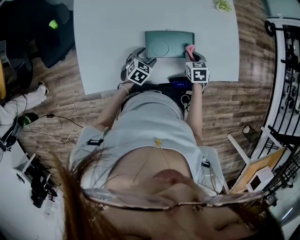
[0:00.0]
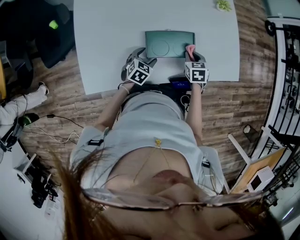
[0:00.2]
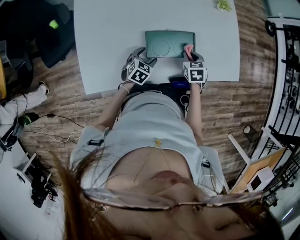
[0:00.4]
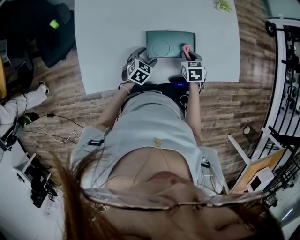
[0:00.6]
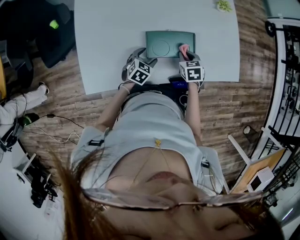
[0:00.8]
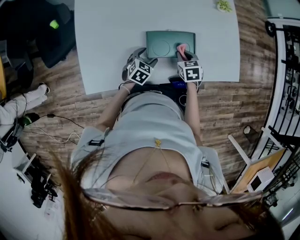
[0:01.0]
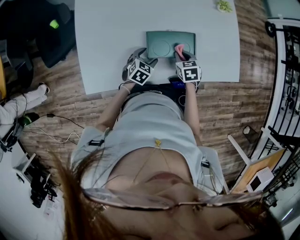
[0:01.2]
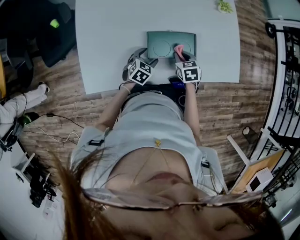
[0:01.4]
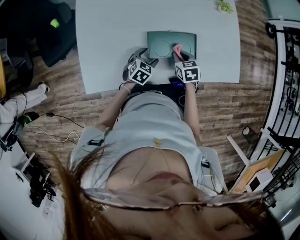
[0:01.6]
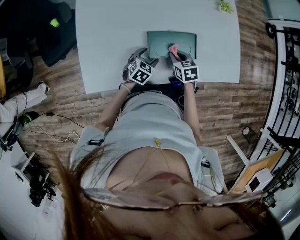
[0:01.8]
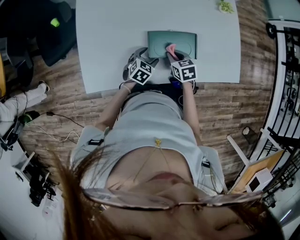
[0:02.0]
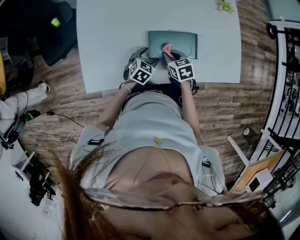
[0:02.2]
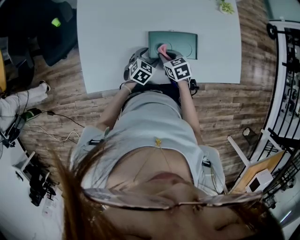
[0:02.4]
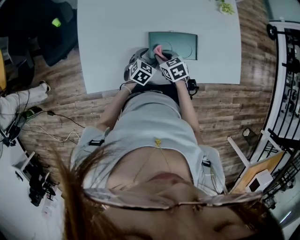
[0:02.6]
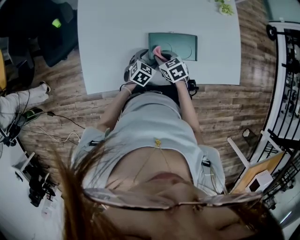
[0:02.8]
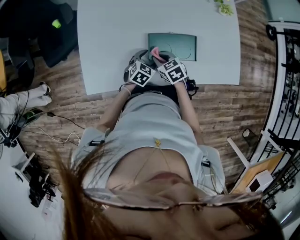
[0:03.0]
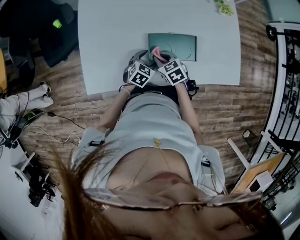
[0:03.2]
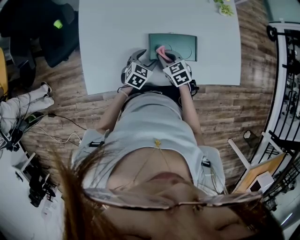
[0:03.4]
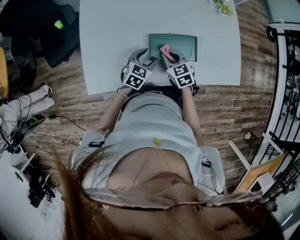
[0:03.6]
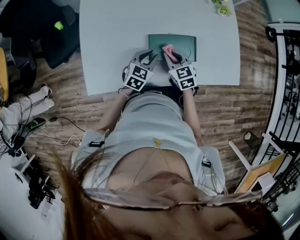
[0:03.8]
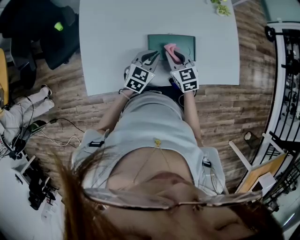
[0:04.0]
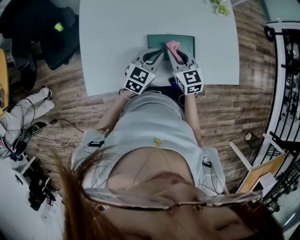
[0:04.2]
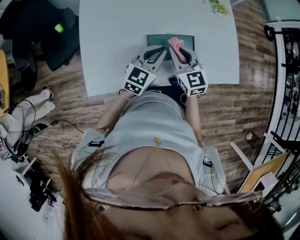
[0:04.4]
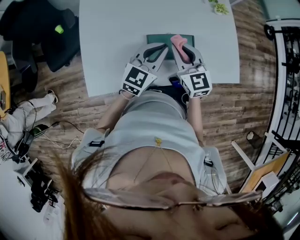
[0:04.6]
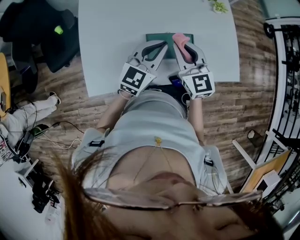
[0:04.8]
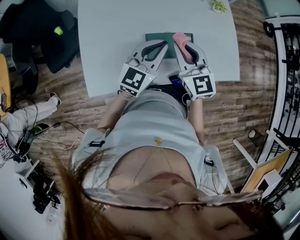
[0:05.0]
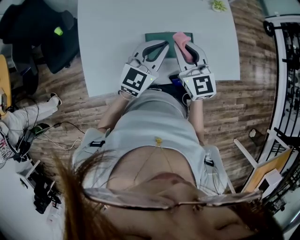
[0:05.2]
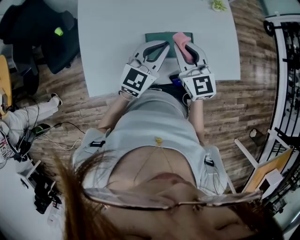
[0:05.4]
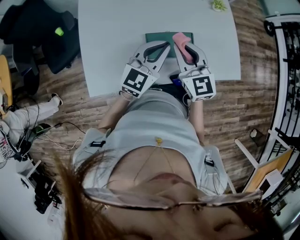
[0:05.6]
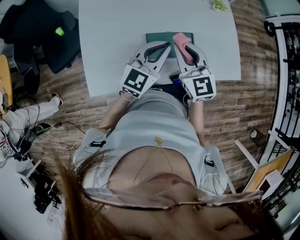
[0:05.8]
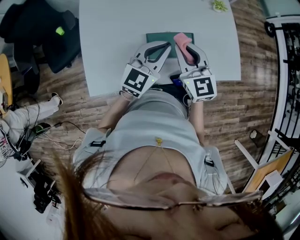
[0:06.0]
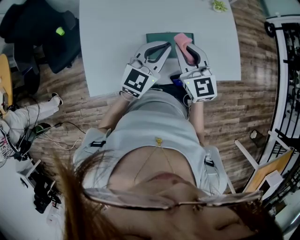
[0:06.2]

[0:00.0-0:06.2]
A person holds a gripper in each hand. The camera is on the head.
0:00.0 to 0:01.6: The right gripper is displaced to the left by roughly 5 cm.
0:01.6 to 0:03.2: The right gripper moves to the left, some 10 cm, and changes its angle by roughly 20 degrees.
0:03.2 to 0:04.6: Both grippers move upward, approximately 20 cm. The right gripper tips its fingers upward by approximately 30 degrees; the left gripper tilts its fingers about 30 degrees upward, and closes.
0:04.6 to 0:06.2: The grippers move only a little.

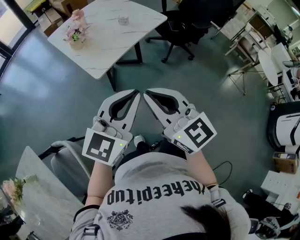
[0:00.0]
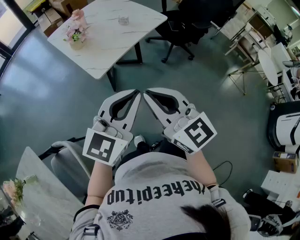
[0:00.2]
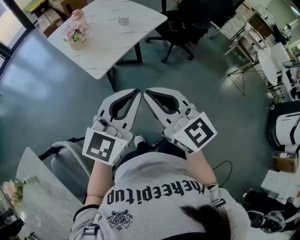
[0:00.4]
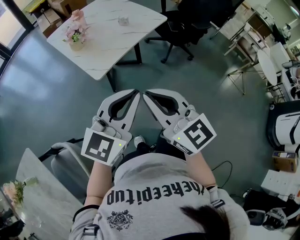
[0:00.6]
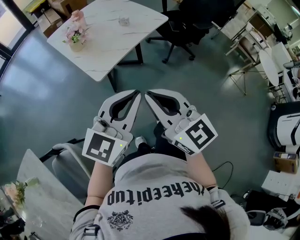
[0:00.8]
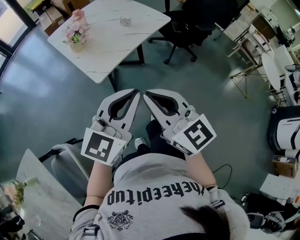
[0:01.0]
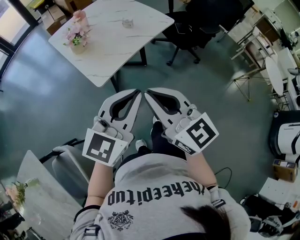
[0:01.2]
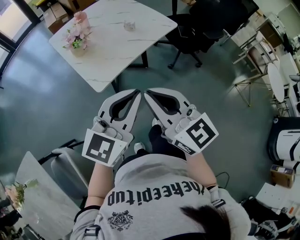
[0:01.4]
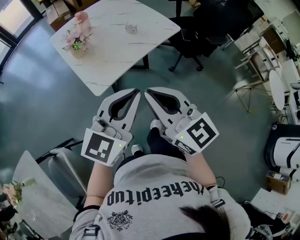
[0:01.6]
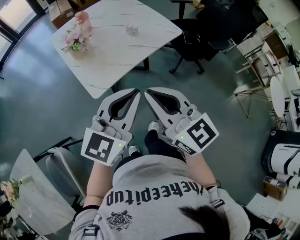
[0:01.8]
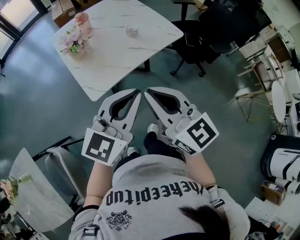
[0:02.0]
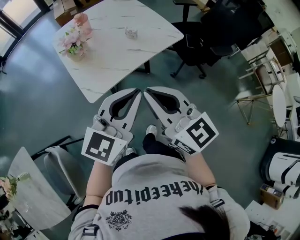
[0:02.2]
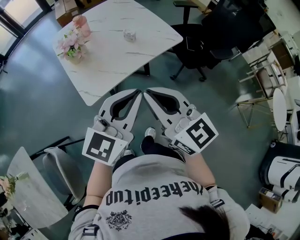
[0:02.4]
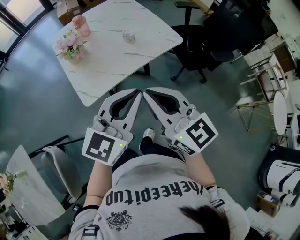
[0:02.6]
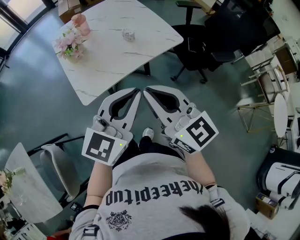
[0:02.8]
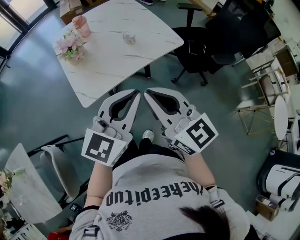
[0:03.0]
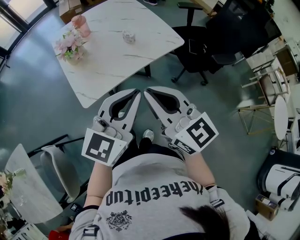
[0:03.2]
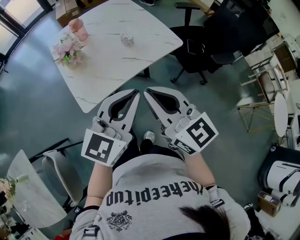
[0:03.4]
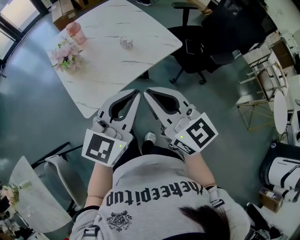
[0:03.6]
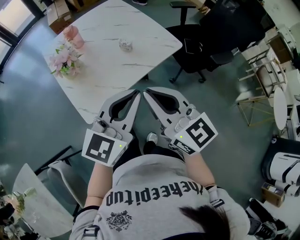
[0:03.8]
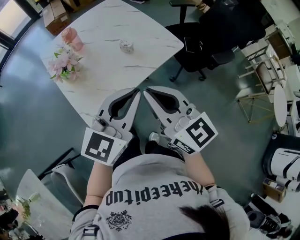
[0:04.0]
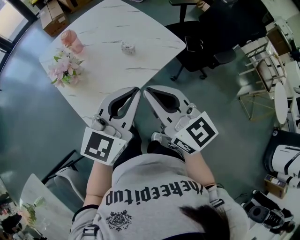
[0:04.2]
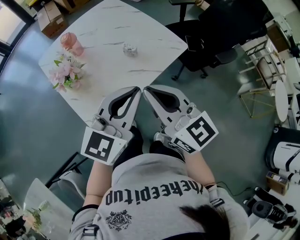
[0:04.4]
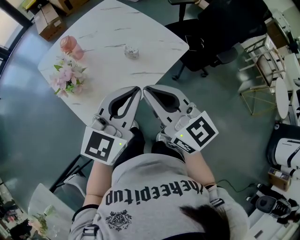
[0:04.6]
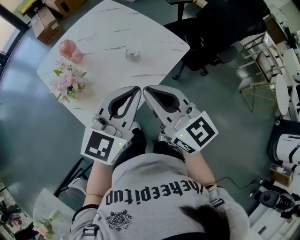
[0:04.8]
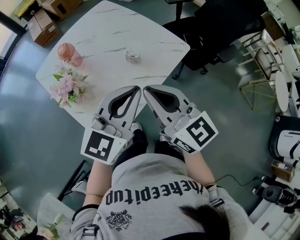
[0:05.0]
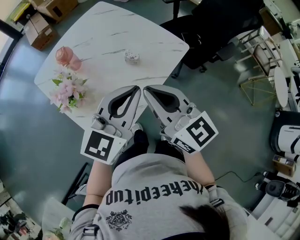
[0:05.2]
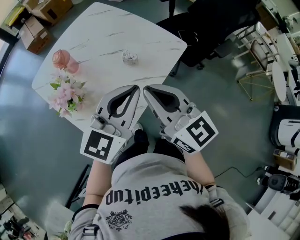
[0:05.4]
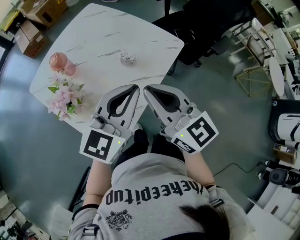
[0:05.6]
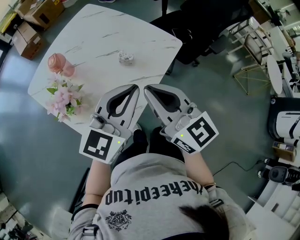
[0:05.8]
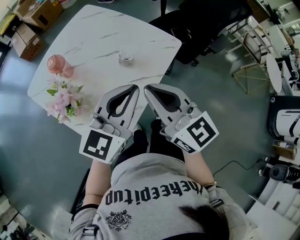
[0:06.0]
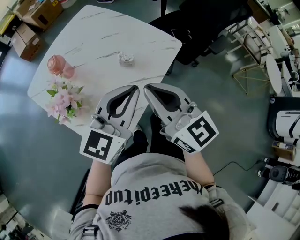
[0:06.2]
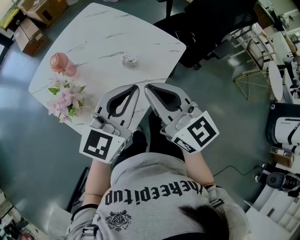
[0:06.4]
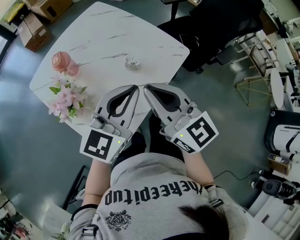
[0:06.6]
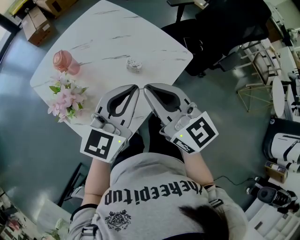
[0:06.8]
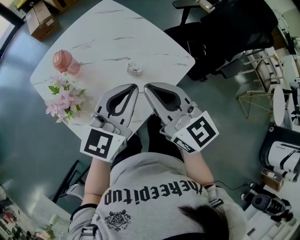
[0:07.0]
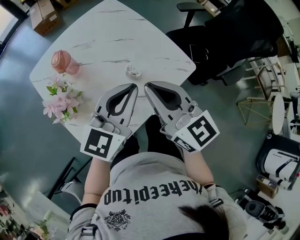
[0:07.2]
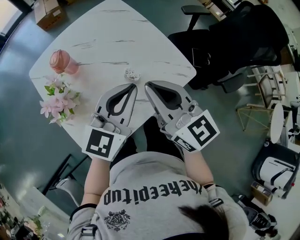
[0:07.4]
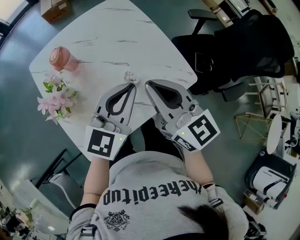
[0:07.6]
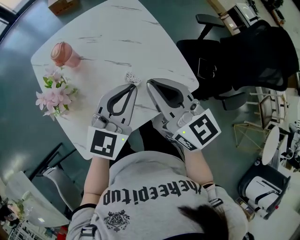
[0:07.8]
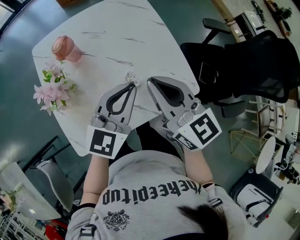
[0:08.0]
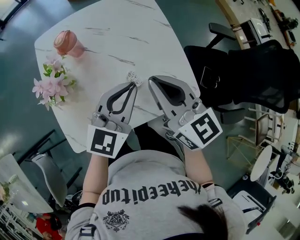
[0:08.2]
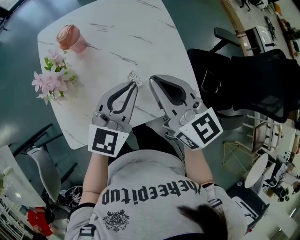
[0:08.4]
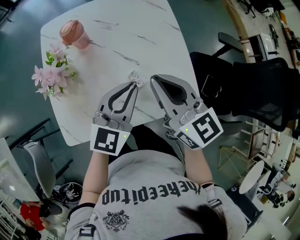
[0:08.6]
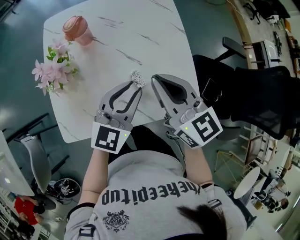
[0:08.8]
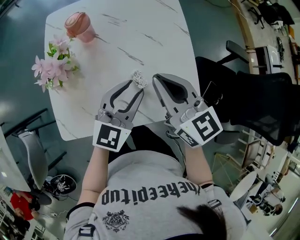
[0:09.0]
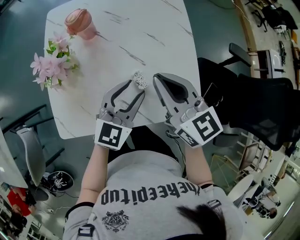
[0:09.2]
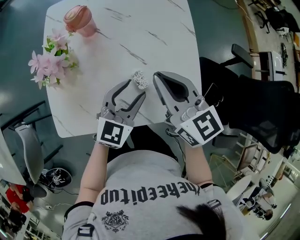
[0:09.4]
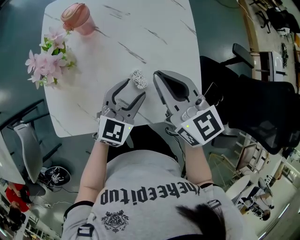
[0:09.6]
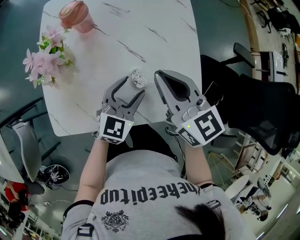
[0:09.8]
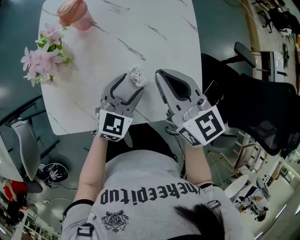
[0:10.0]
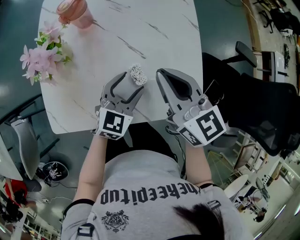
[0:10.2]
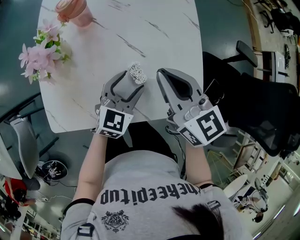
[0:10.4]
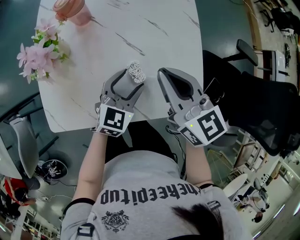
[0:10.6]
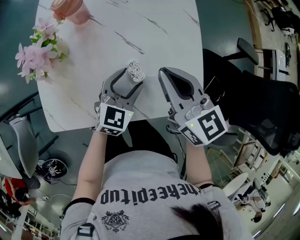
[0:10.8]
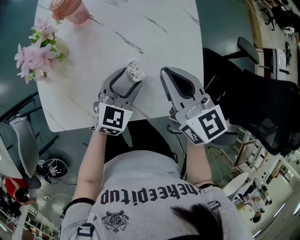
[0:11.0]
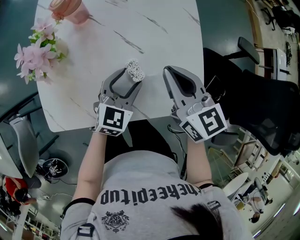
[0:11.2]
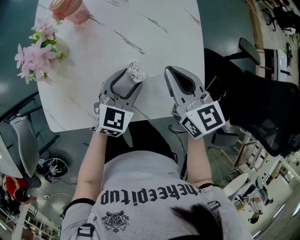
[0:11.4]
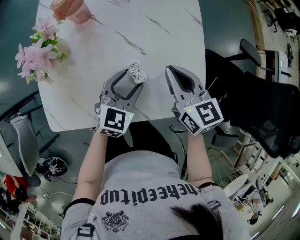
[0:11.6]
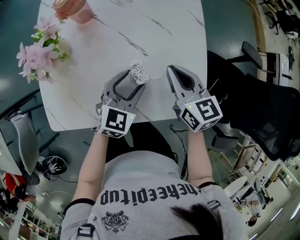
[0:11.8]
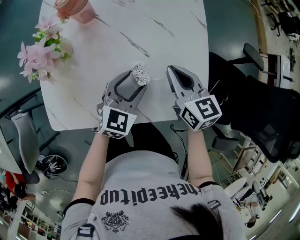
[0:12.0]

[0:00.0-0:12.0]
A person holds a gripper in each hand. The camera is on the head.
0:00.0 to 0:01.6: Both grippers travel together forward, about 15 cm.
0:01.6 to 0:03.0: The two grippers go about 10 cm to the right and forward.
0:03.0 to 0:04.4: Both grippers travel together forward and to the left, approximately 15 cm.
0:04.4 to 0:06.0: The two grippers go some 5 cm forward.
0:06.0 to 0:07.6: Both grippers move forward, roughly 15 cm. The left gripper rotates some 30 degrees. Meanwhile the right gripper rotates roughly 20 degrees.
0:07.6 to 0:09.0: The right gripper moves forward and downward, approximately 10 cm, and swivels roughly 20 degrees; the left gripper shifts about 10 cm downward, rotates approximately 20 degrees, and opens up.
0:09.0 to 0:10.4: The left gripper travels downward by some 10 cm, and opens.
0:10.4 to 0:12.0: The right gripper goes about 10 cm downward.

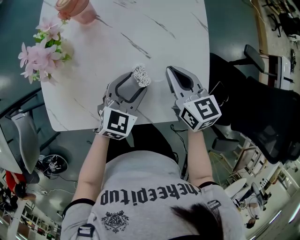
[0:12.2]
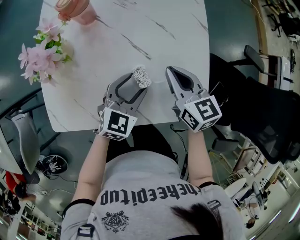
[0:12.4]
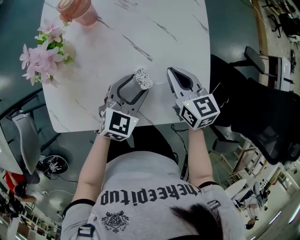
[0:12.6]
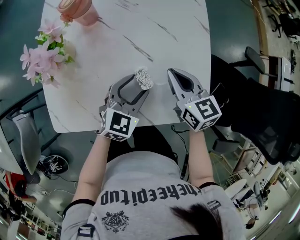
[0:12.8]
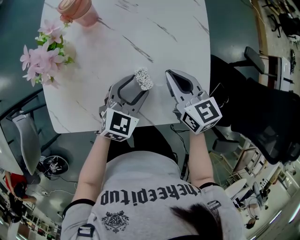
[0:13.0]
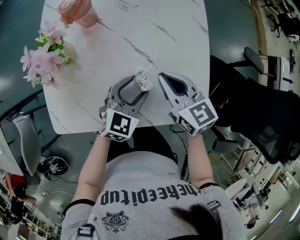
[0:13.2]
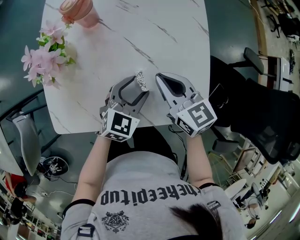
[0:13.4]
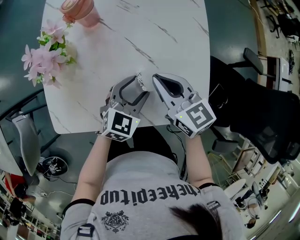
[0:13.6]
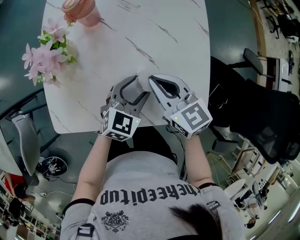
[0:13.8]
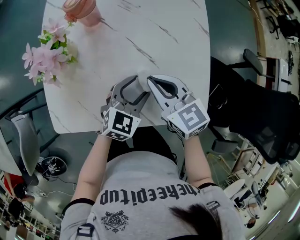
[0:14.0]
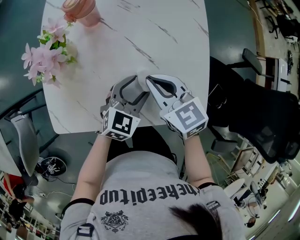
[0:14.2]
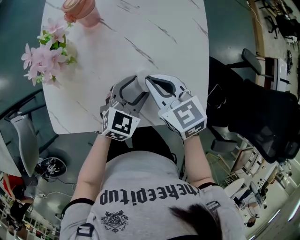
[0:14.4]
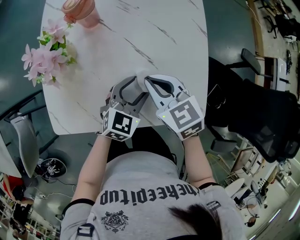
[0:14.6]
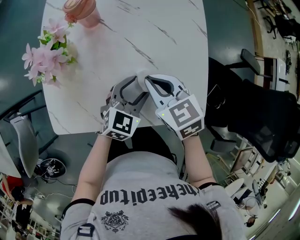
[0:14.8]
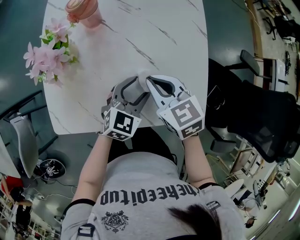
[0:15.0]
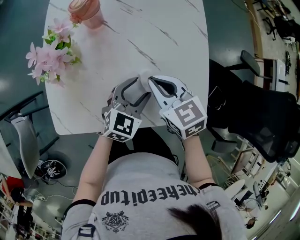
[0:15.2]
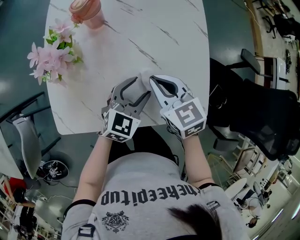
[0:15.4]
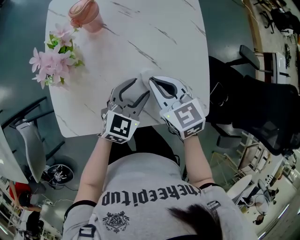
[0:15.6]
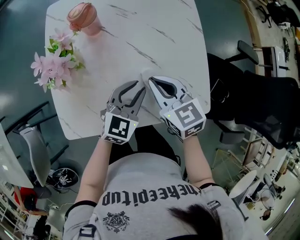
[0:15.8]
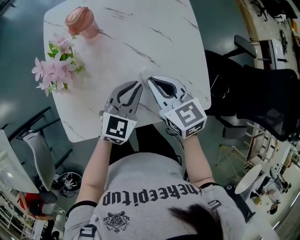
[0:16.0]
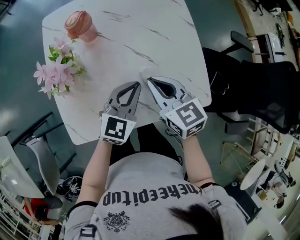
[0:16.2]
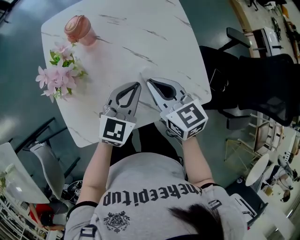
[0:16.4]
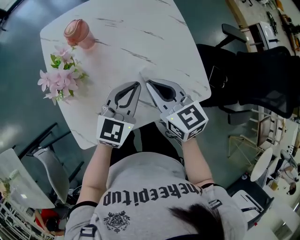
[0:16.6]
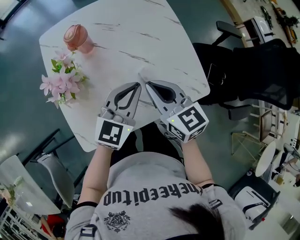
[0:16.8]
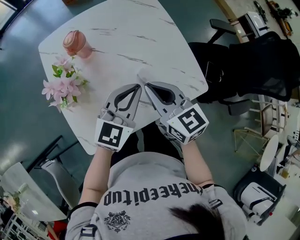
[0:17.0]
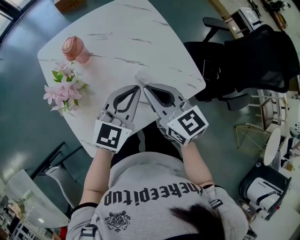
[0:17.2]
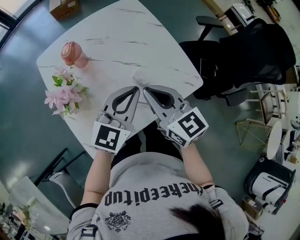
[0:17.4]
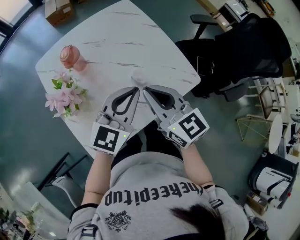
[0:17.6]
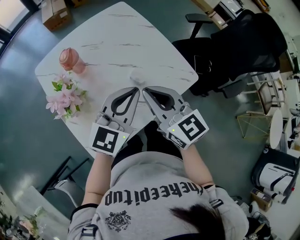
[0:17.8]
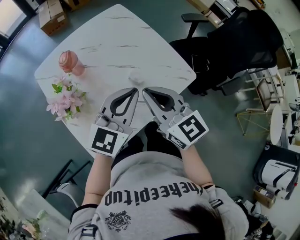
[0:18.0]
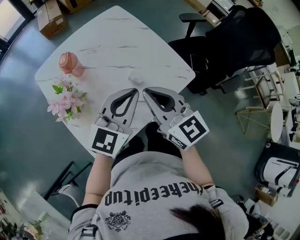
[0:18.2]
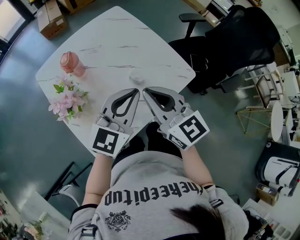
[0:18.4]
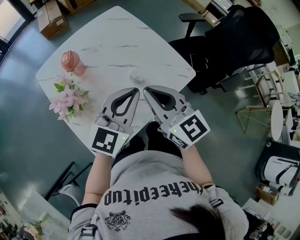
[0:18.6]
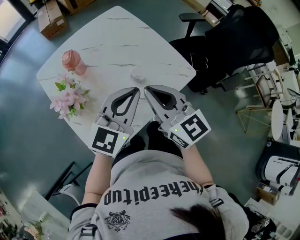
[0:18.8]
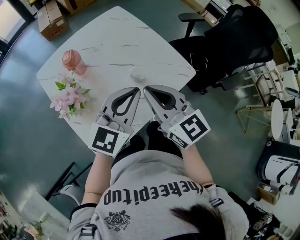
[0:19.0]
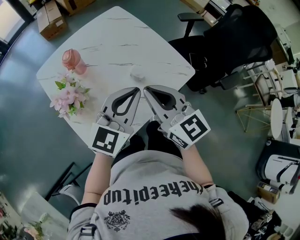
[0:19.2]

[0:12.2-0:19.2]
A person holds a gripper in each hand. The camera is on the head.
0:12.2 to 0:13.6: The right gripper shifts approximately 5 cm to the left.
0:13.6 to 0:15.0: The grippers move only a little.
0:15.0 to 0:16.4: The left gripper shifts about 10 cm upward, and closes, while the right gripper shifts by some 5 cm, and swivels some 20 degrees.
0:16.4 to 0:17.8: The two grippers go about 15 cm upward and backward. The right gripper rotates roughly 20 degrees. The left gripper turns by about 20 degrees.
0:17.8 to 0:19.2: The grippers stay close to where they were, moving slightly.
